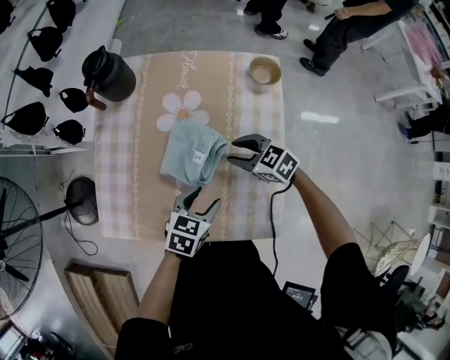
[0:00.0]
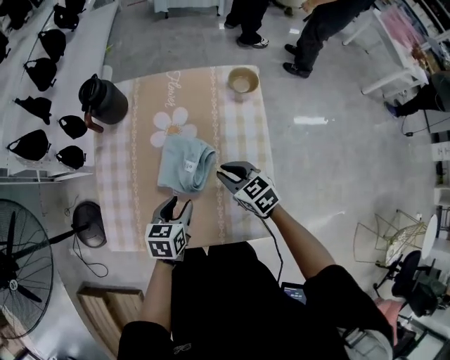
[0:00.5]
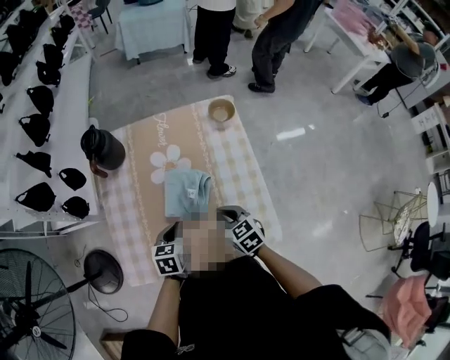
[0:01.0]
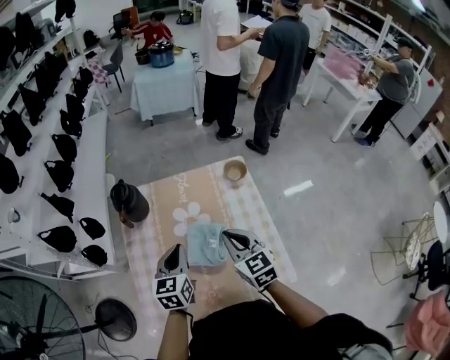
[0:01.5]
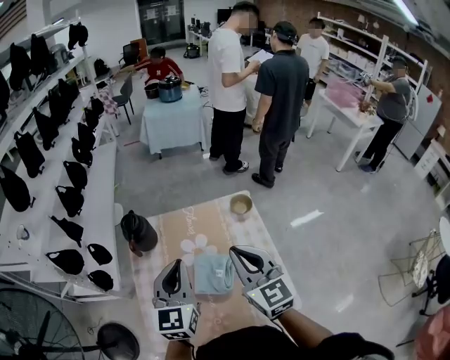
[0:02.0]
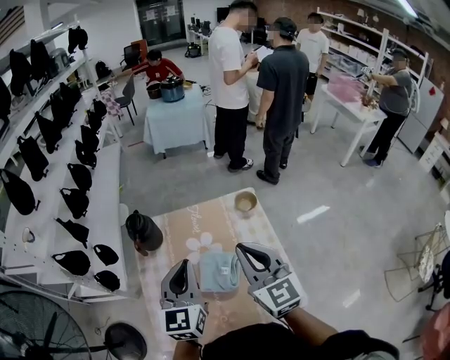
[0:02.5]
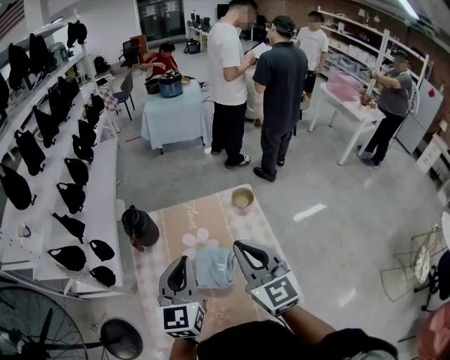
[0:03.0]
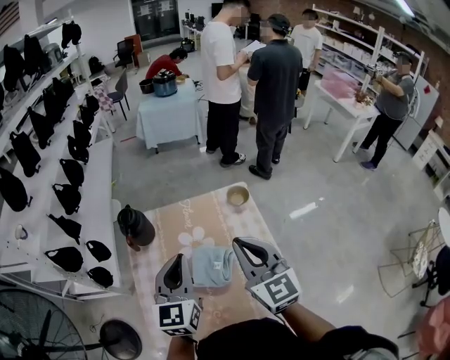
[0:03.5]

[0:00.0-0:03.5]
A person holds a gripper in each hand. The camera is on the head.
0:00.0 to 0:02.0: The left gripper goes roughly 35 cm upward and to the left, tilts its fingers about 40 degrees upward, and closes; the right gripper is displaced upward by about 35 cm, points its fingers about 30 degrees further upward, and closes.
0:02.0 to 0:03.5: The grippers make only small movements.

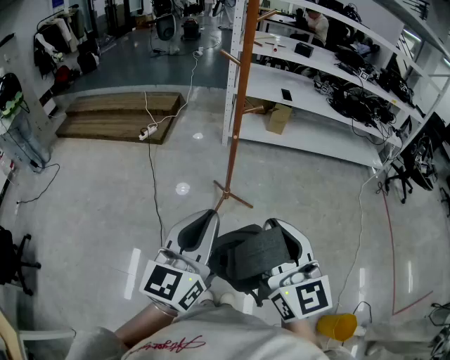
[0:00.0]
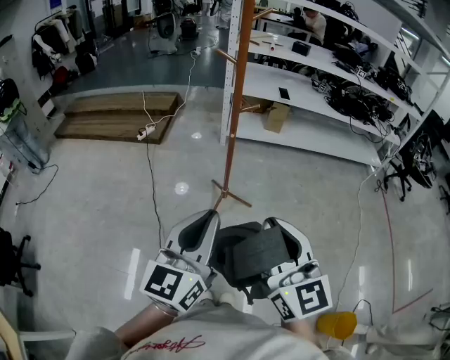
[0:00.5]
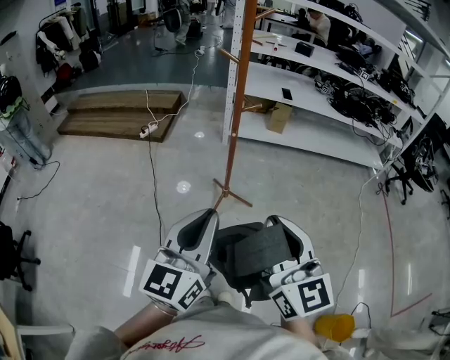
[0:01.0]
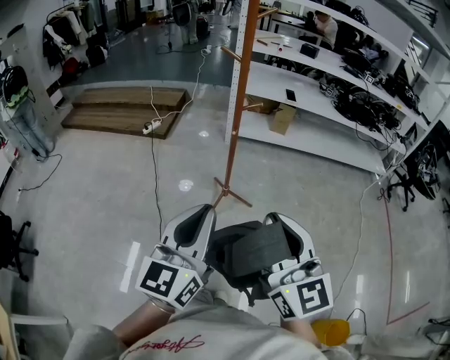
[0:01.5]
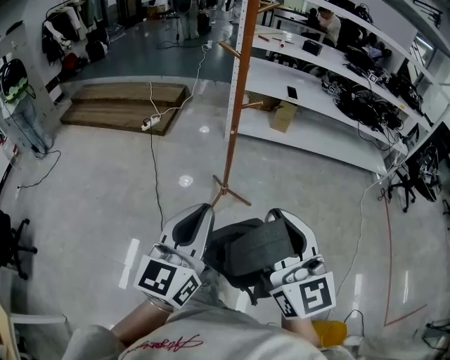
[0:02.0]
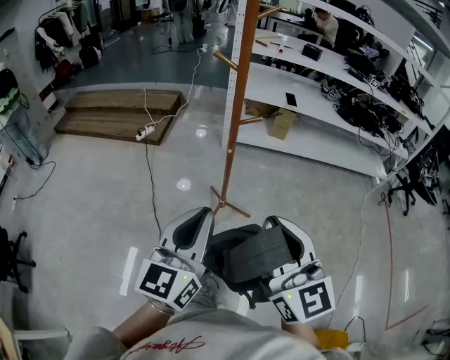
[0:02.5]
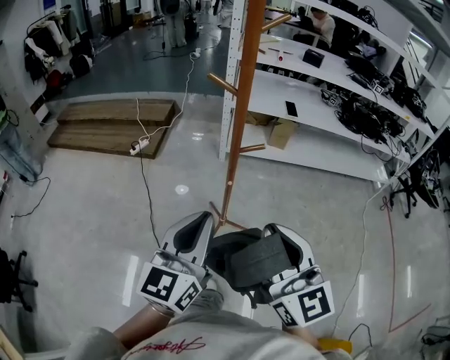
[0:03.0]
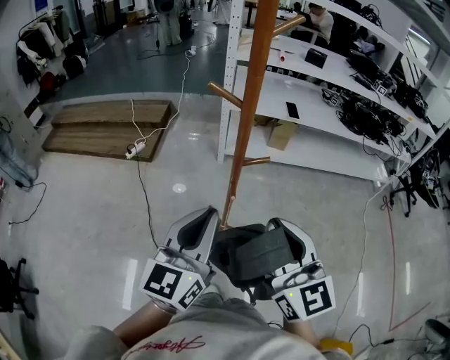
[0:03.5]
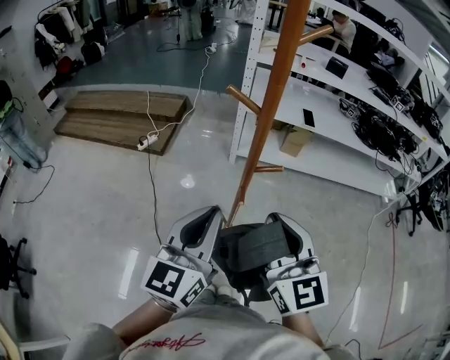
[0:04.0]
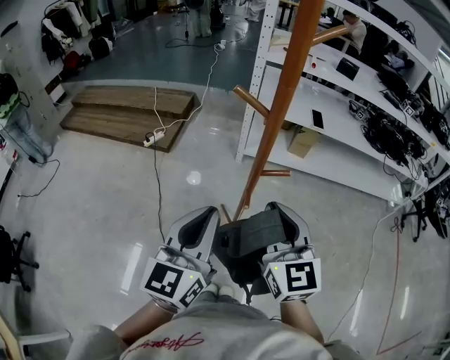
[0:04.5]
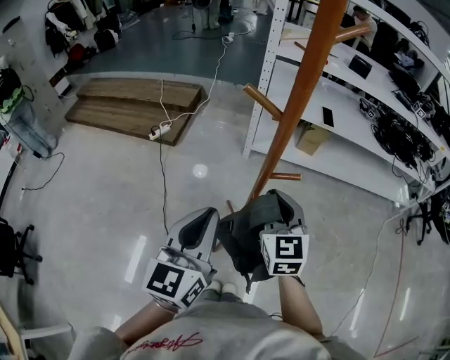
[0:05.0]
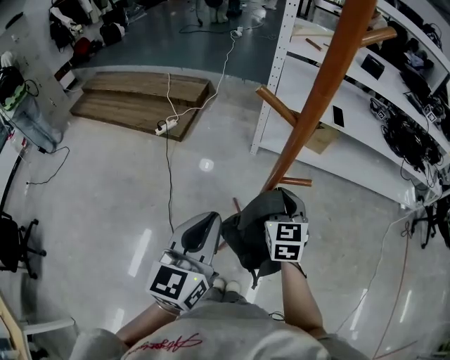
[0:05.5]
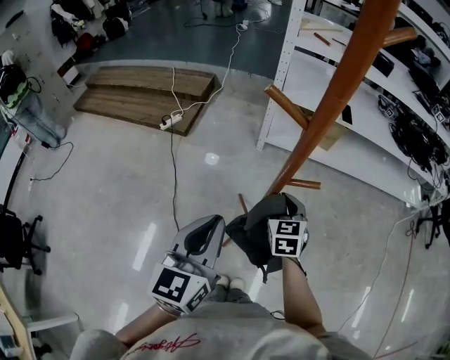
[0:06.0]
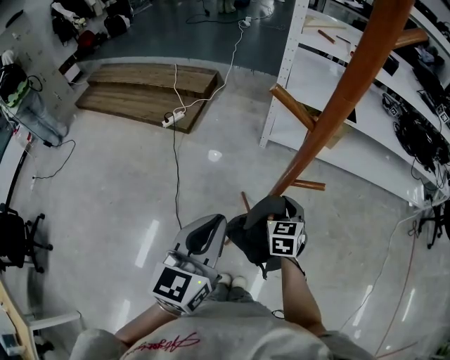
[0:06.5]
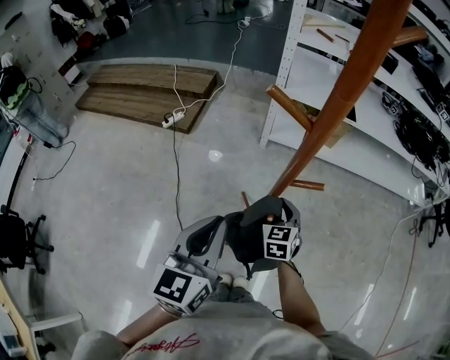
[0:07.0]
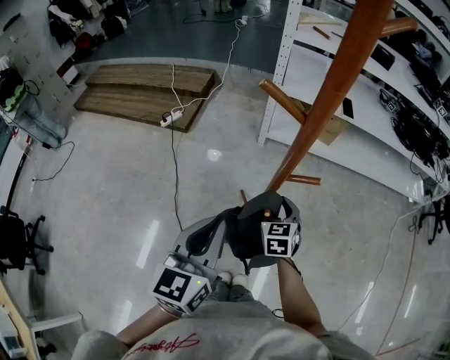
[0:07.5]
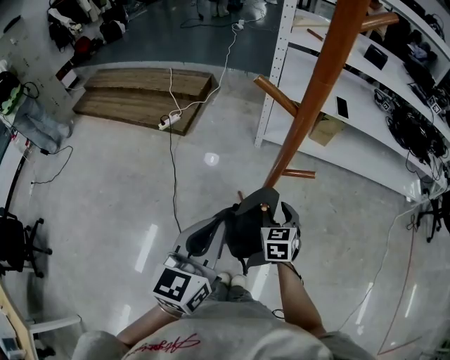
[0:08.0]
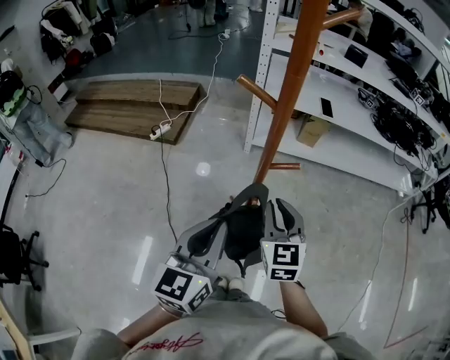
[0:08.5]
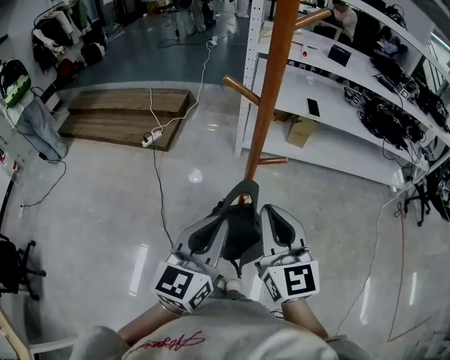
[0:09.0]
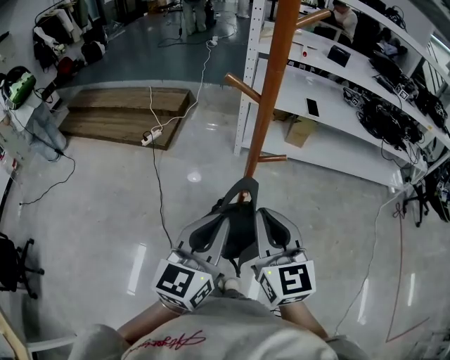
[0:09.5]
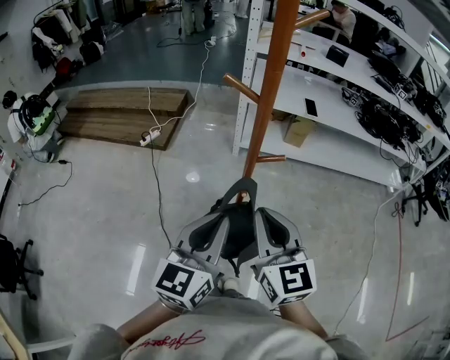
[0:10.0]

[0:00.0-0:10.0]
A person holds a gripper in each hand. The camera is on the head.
0:00.0 to 0:02.0: The grippers stay close to where they were, moving slightly.
0:02.0 to 0:04.0: The two grippers go roughly 30 cm forward.
0:04.0 to 0:06.0: The left gripper goes some 5 cm downward, while the right gripper heads downward and forward, covering some 30 cm, and tips its fingers downward by approximately 30 degrees.
0:06.0 to 0:08.0: The right gripper shifts by approximately 5 cm, and opens its fingers.
0:08.0 to 0:10.0: The left gripper changes place by about 5 cm. Meanwhile the right gripper travels upward and backward by approximately 25 cm, swivels roughly 30 degrees, and closes up.

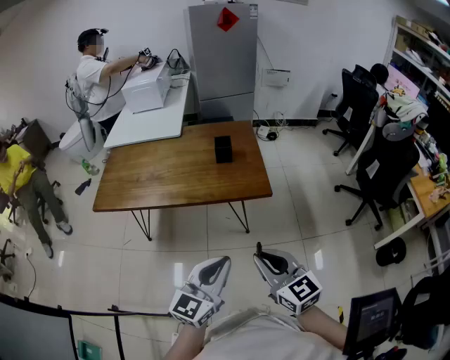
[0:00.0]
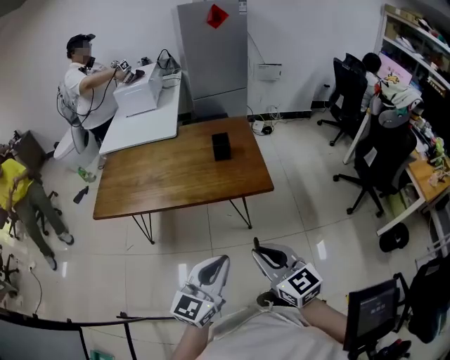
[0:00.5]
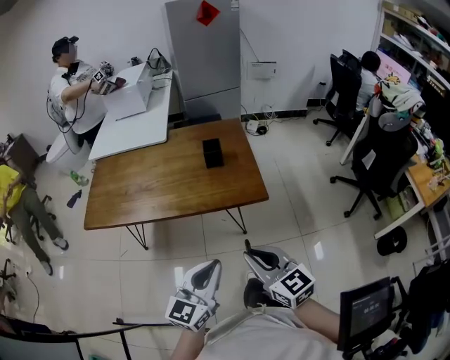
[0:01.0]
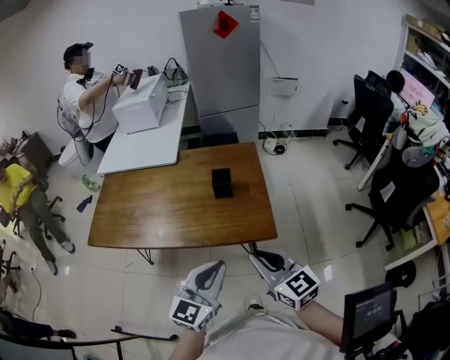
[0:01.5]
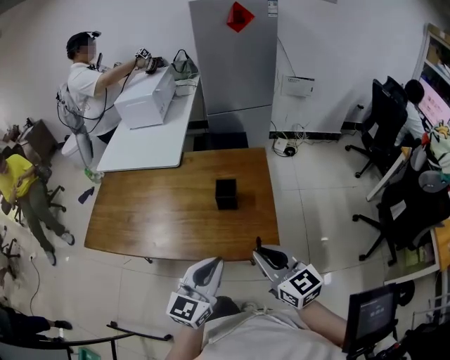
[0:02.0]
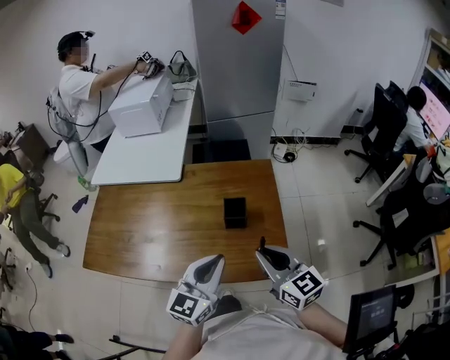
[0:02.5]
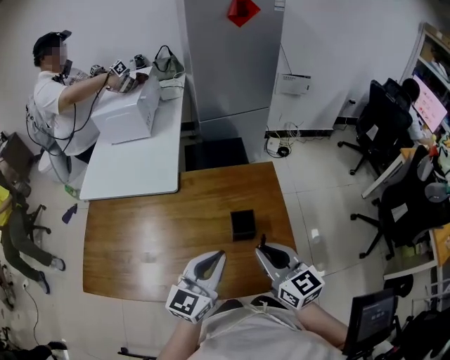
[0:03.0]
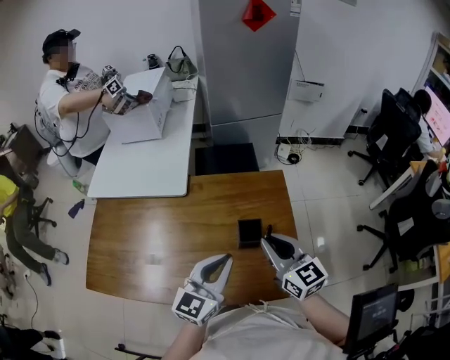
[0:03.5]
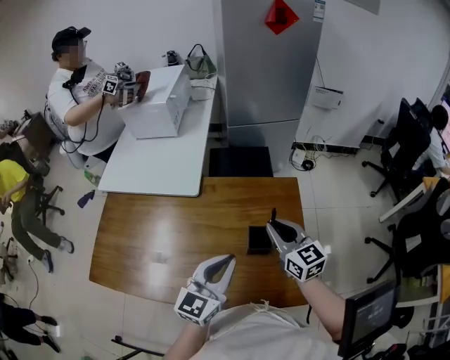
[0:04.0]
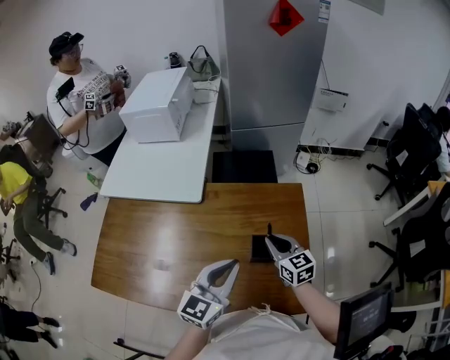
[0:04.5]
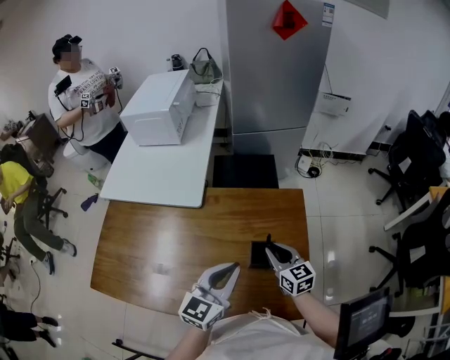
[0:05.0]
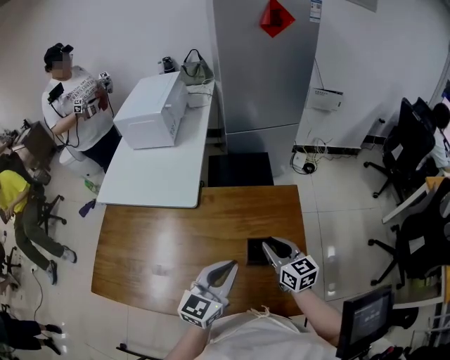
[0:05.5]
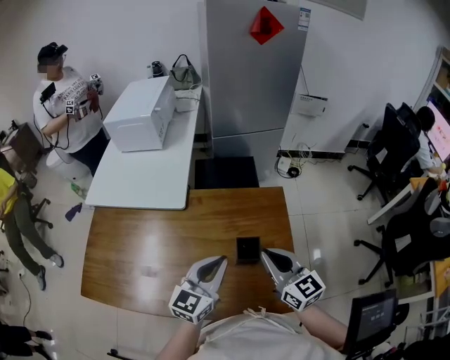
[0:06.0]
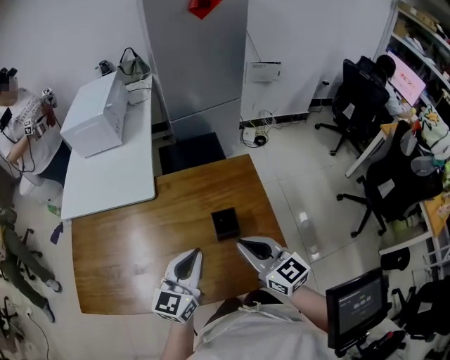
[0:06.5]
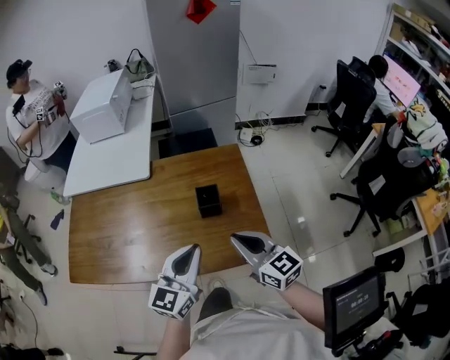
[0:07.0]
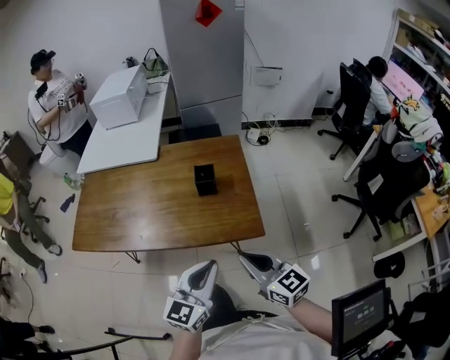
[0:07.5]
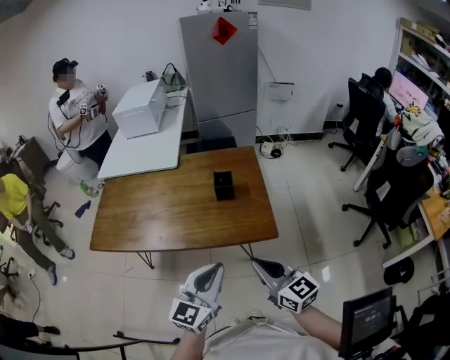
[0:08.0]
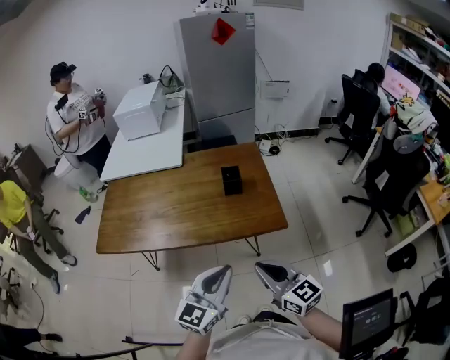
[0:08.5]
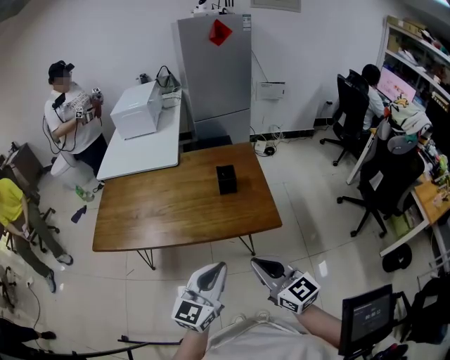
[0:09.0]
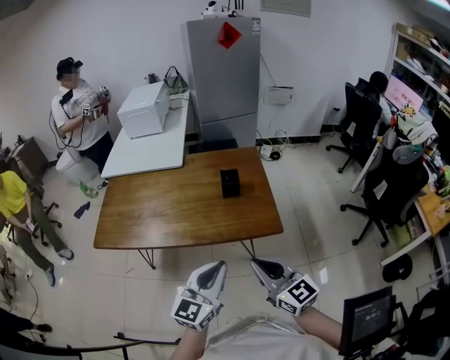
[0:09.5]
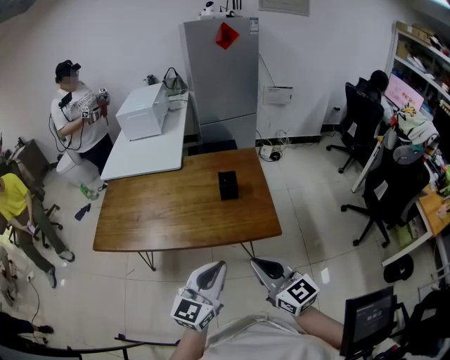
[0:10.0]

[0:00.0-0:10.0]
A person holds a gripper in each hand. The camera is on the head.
0:00.0 to 0:02.0: The grippers both shift forward by about 30 cm.
0:02.0 to 0:04.0: Both grippers travel together forward, some 25 cm.
0:04.0 to 0:06.0: The right gripper travels backward by roughly 5 cm, and goes downward and returns, some 10 cm each way.
0:06.0 to 0:08.0: Both grippers travel together backward, some 35 cm.
0:08.0 to 0:10.0: The right gripper shifts by about 5 cm.

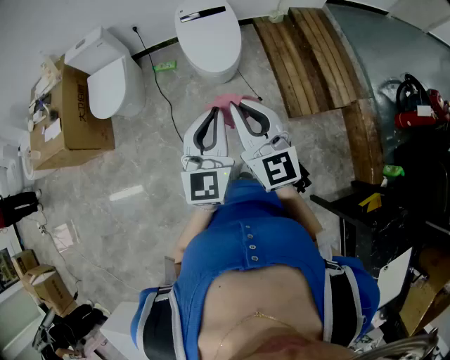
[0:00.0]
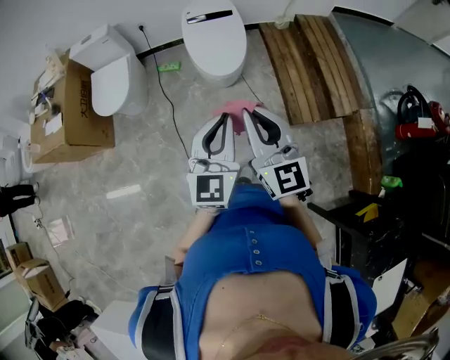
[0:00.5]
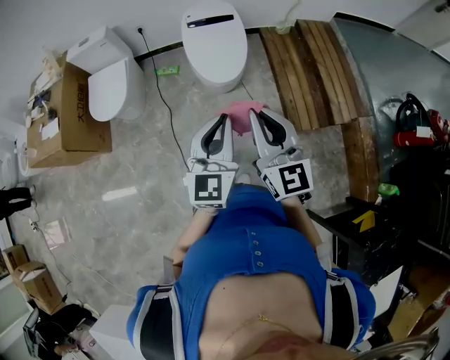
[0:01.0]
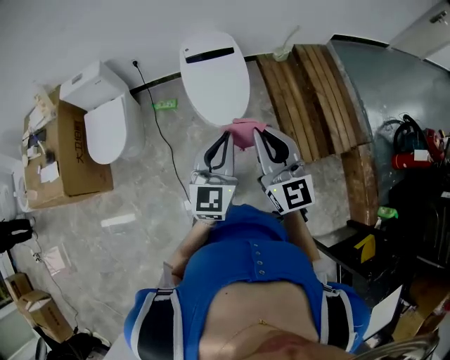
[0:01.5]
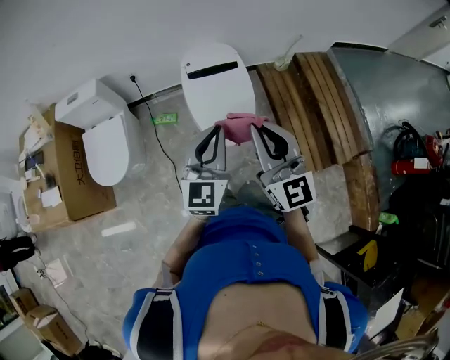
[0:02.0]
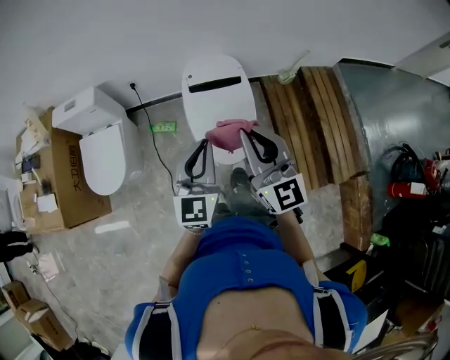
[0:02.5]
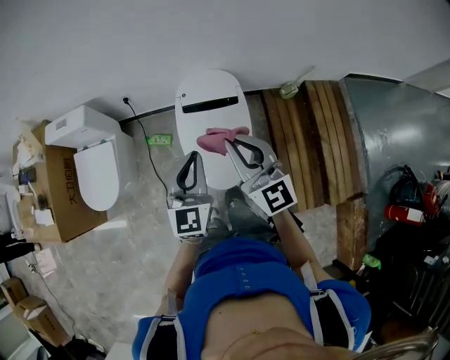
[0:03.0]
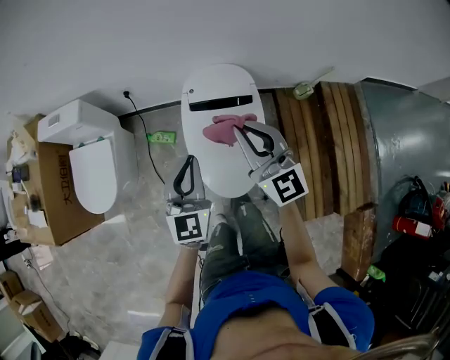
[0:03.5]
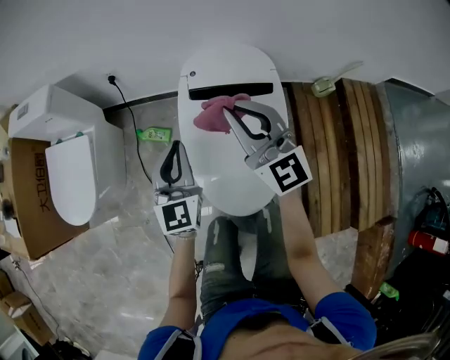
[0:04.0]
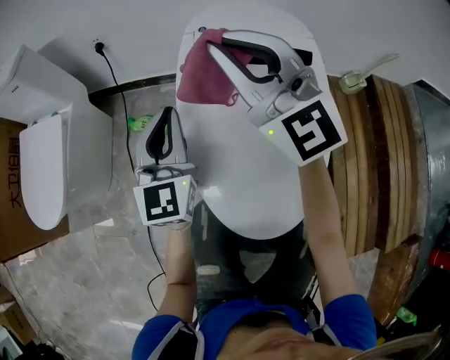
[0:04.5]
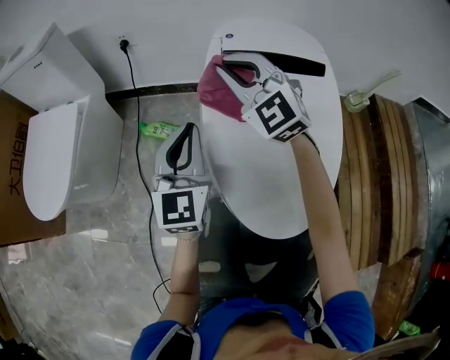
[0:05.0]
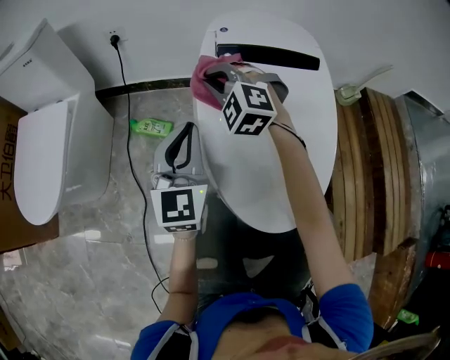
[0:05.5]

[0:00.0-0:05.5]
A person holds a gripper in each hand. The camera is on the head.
0:00.0 to 0:02.0: Both grippers move forward, roughly 35 cm.
0:02.0 to 0:03.5: Both grippers move forward and downward, approximately 35 cm. The left gripper turns by roughly 20 degrees.
0:03.5 to 0:05.5: The two grippers go approximately 50 cm downward. The right gripper rolls counterclockwise, seen from behind, by roughly 50 degrees.
